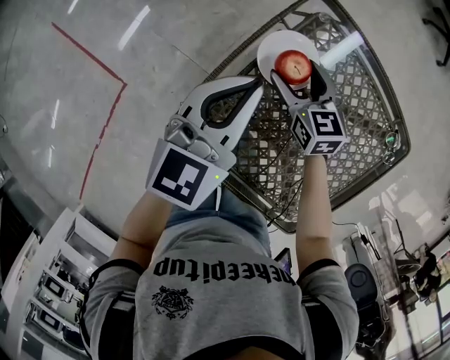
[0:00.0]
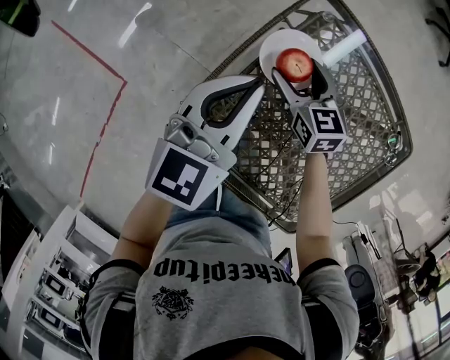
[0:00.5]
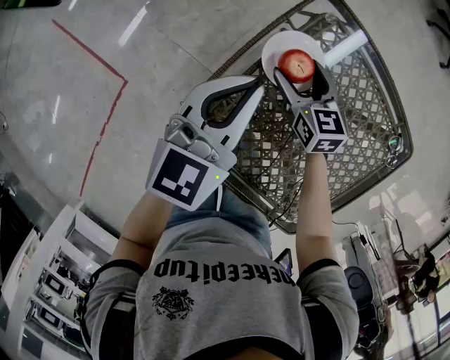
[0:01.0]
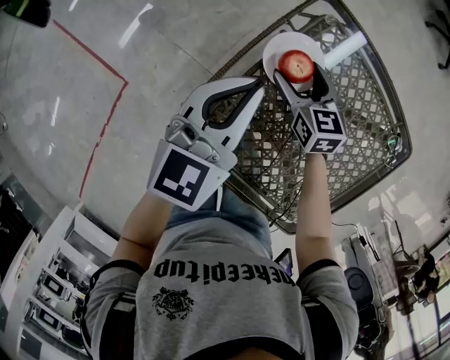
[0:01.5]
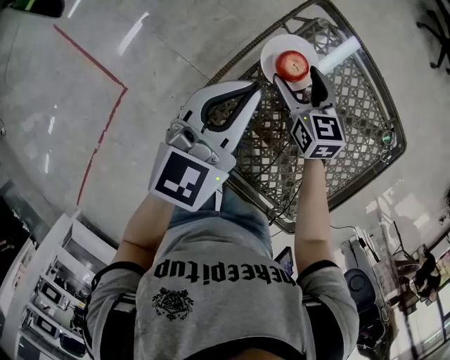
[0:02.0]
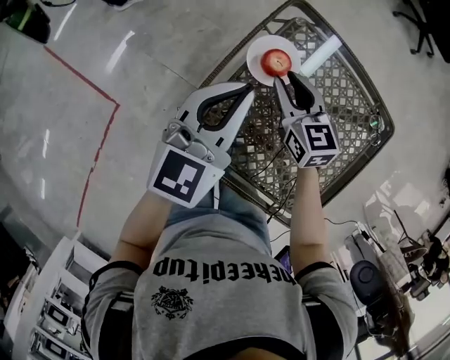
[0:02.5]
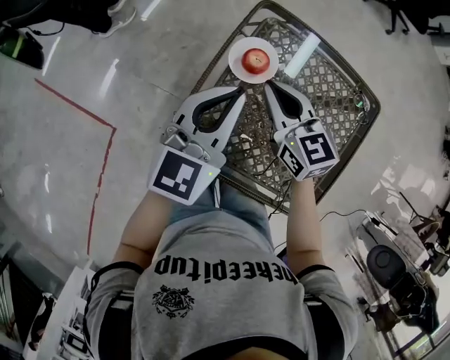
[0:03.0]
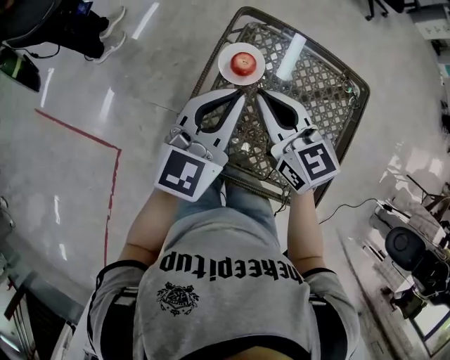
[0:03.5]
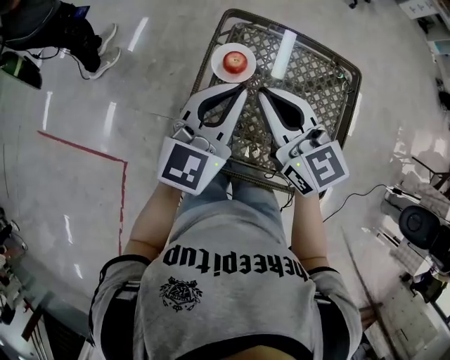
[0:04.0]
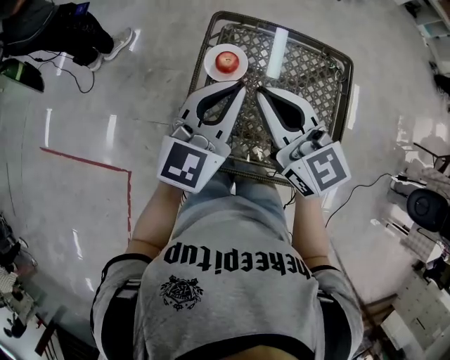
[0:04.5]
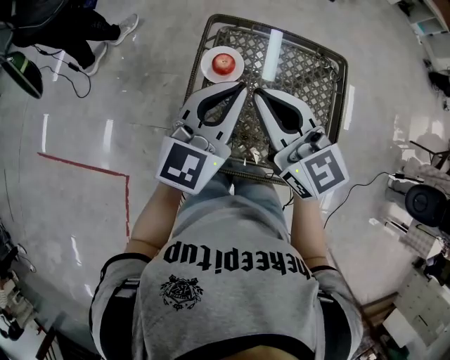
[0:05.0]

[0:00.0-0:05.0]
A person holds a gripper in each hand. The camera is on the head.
0:00.0 to 0:02.5: The right gripper heads upward, covering some 10 cm, and closes up.
0:02.5 to 0:05.0: The left gripper shifts approximately 15 cm upward, backward and to the right, and changes its angle by roughly 30 degrees, while the right gripper moves upward and backward, approximately 30 cm, and changes its angle by roughly 30 degrees.

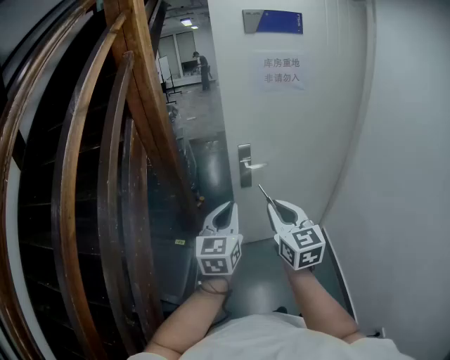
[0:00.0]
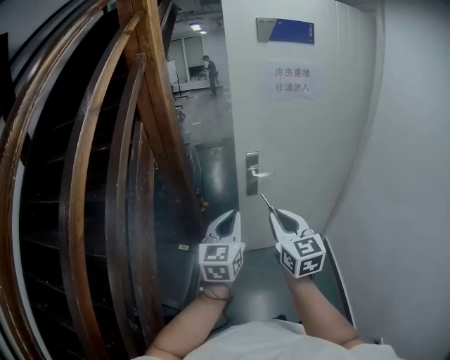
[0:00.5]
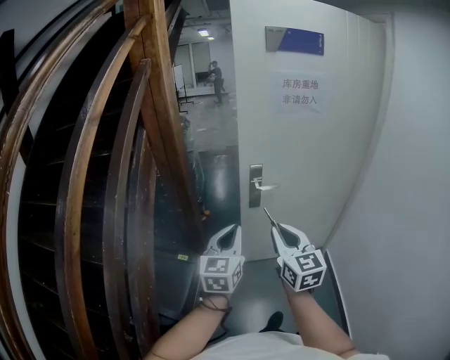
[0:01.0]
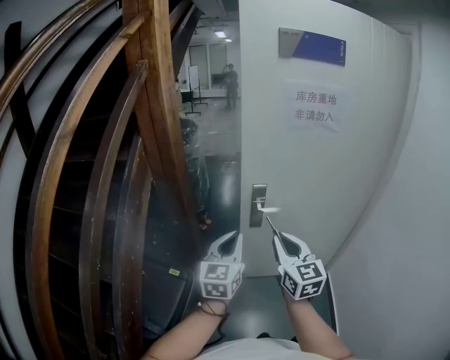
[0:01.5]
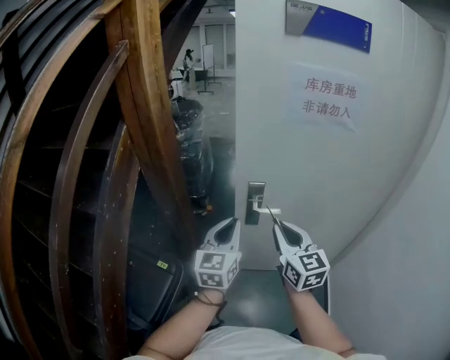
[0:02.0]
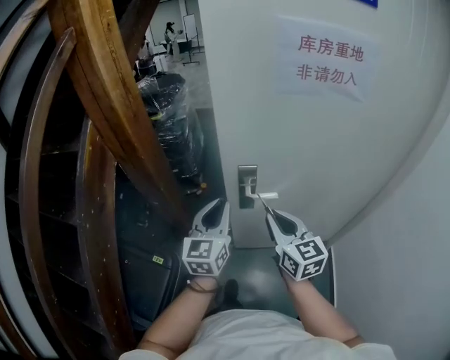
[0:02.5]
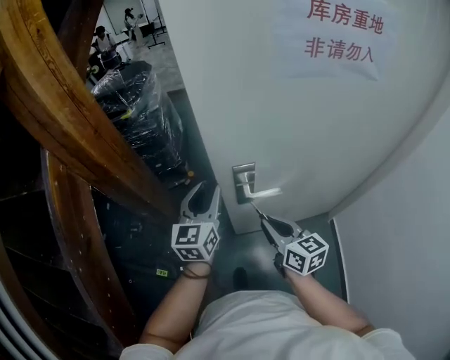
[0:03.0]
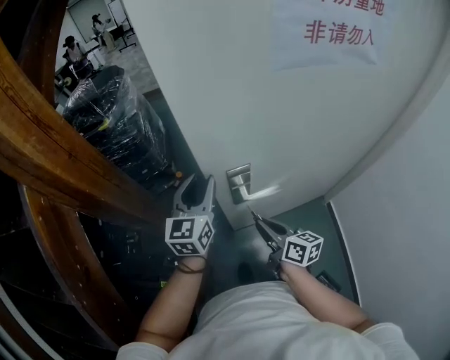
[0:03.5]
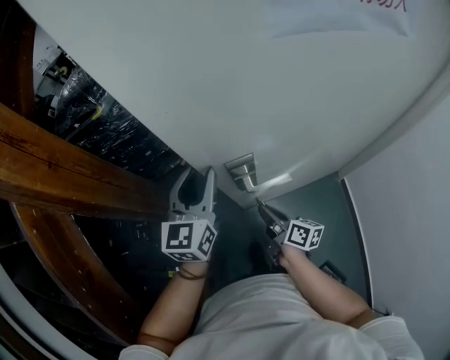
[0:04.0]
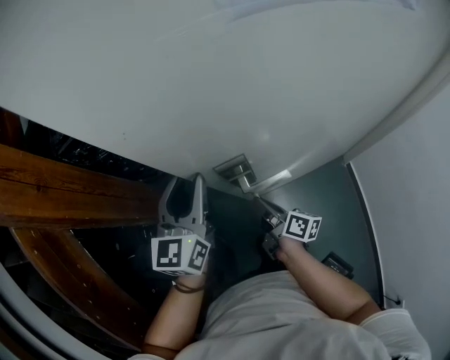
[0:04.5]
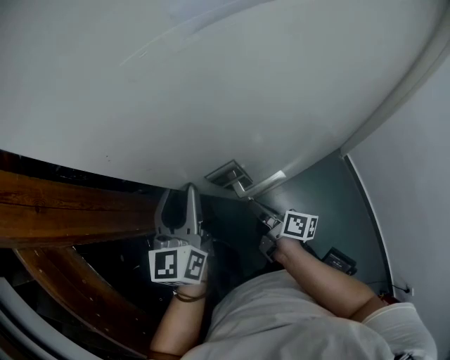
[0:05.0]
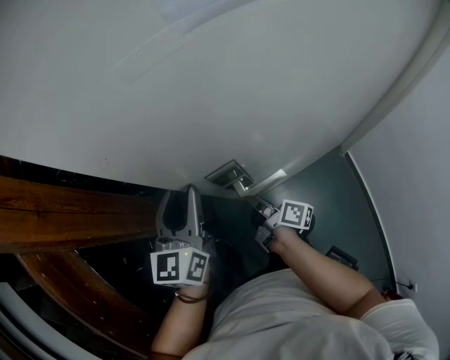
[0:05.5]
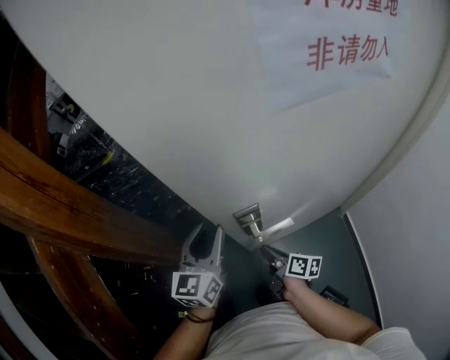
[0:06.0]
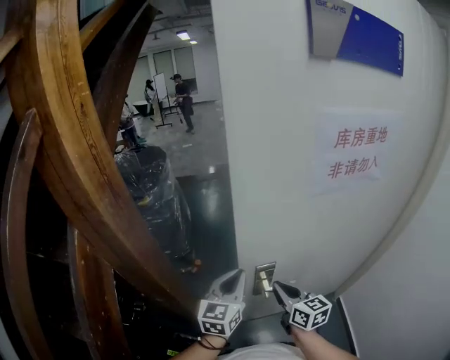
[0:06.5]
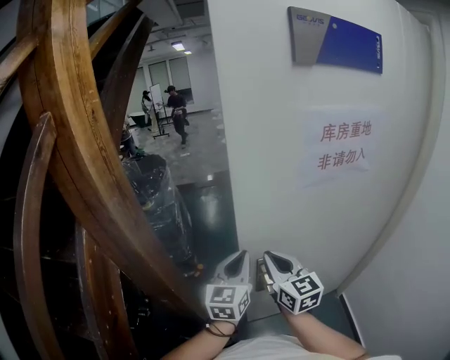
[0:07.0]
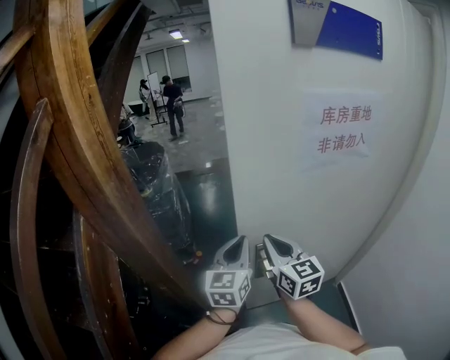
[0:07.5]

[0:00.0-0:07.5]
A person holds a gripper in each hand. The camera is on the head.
0:00.0 to 0:02.0: Both grippers move forward, approximately 25 cm.
0:02.0 to 0:04.0: The right gripper shifts approximately 40 cm downward and forward, and twists approximately 60 degrees clockwise, seen from behind. Meanwhile the left gripper travels forward by some 30 cm, and opens.
0:04.0 to 0:05.5: The right gripper travels forward by about 5 cm, and turns by approximately 20 degrees.
0:05.5 to 0:07.5: The left gripper travels upward by approximately 10 cm, and closes its fingers. Meanwhile the right gripper goes roughly 35 cm upward, and twists about 80 degrees counterclockwise, seen from behind.

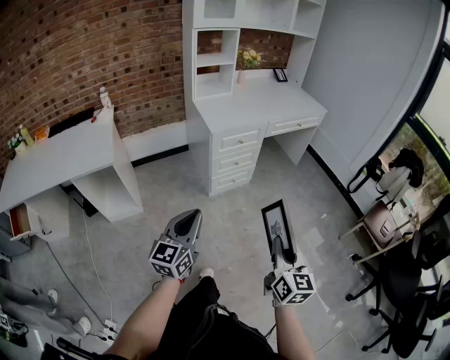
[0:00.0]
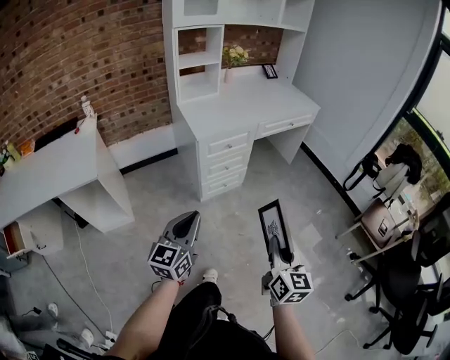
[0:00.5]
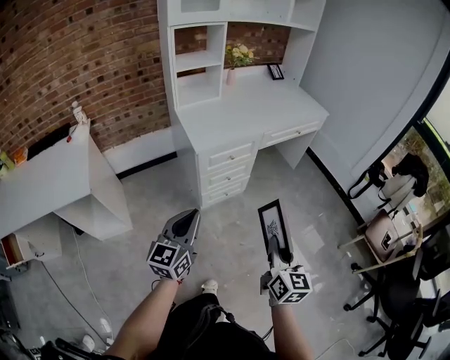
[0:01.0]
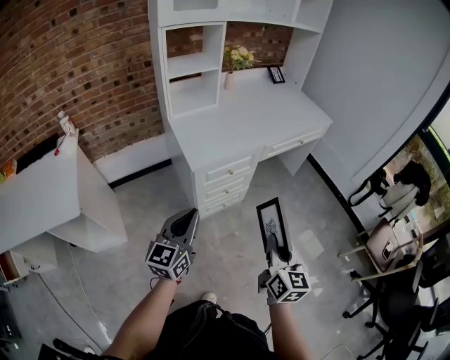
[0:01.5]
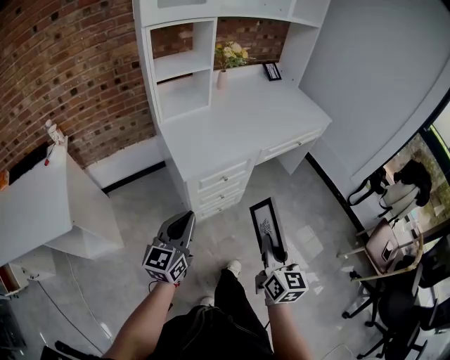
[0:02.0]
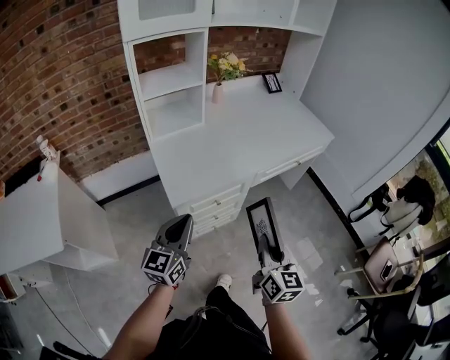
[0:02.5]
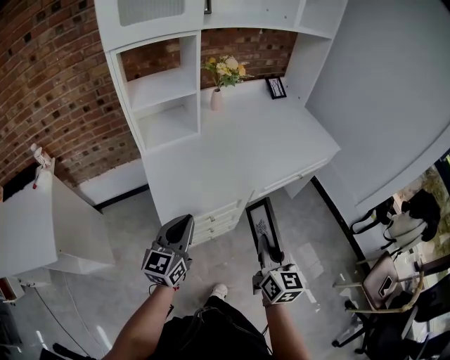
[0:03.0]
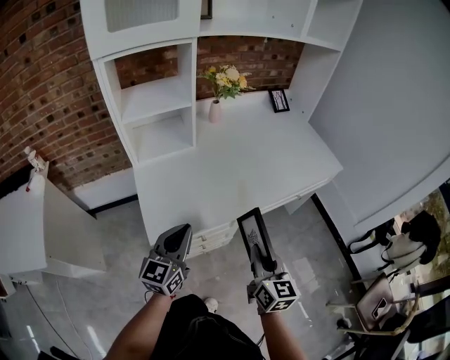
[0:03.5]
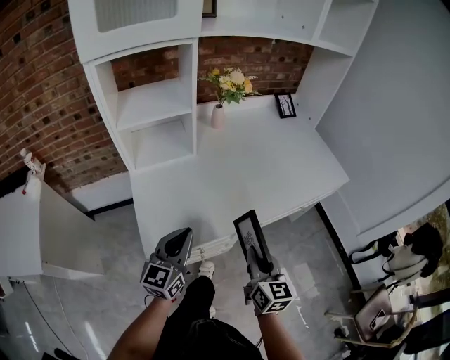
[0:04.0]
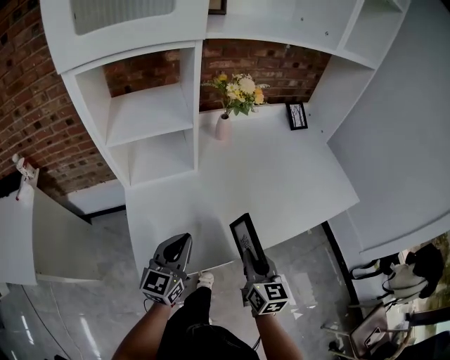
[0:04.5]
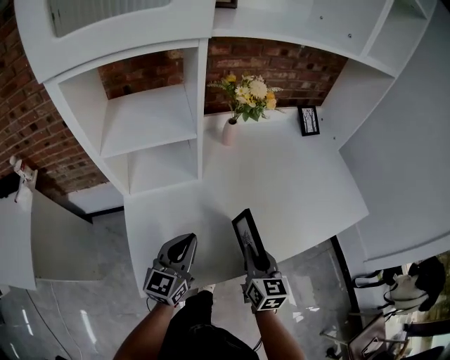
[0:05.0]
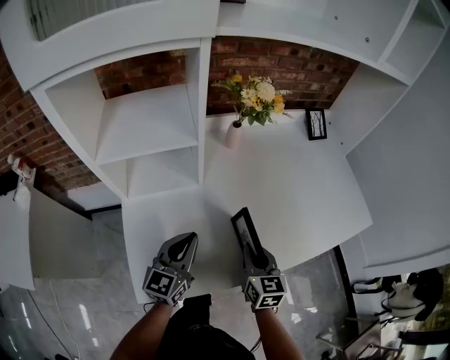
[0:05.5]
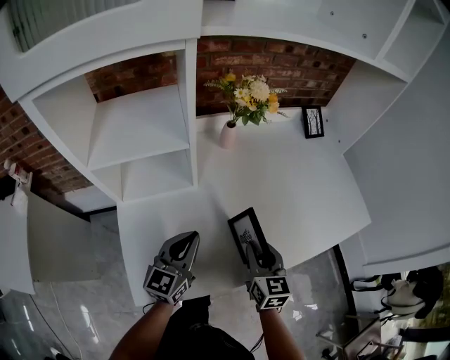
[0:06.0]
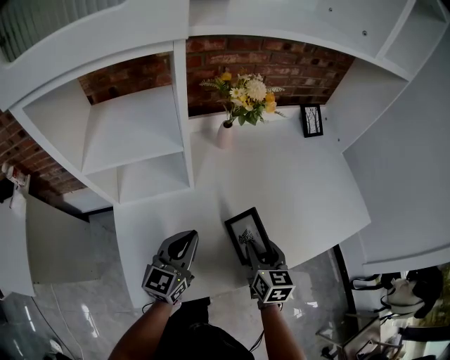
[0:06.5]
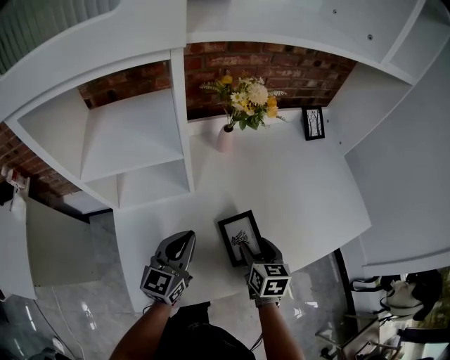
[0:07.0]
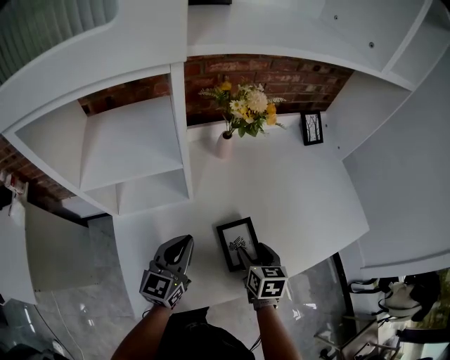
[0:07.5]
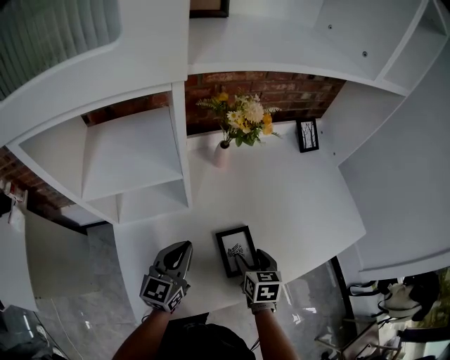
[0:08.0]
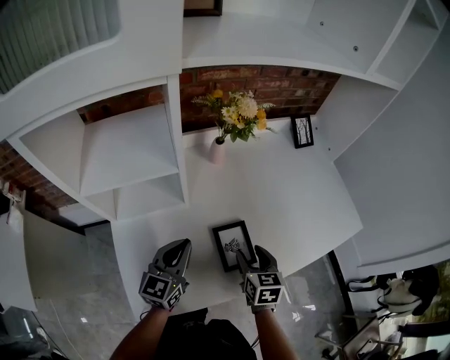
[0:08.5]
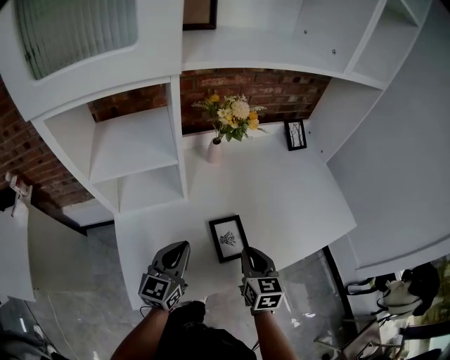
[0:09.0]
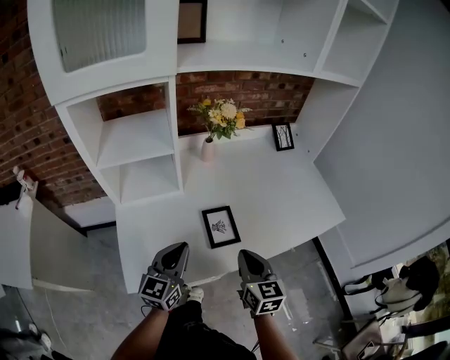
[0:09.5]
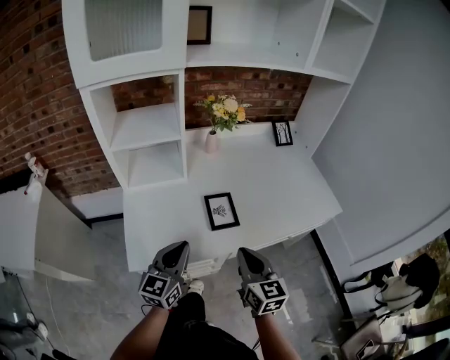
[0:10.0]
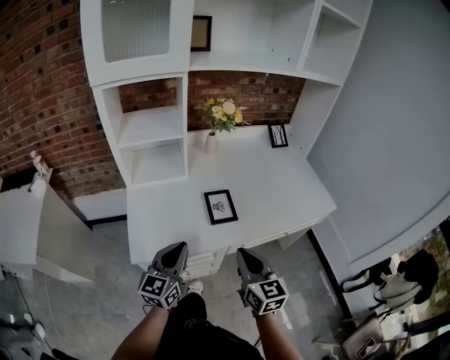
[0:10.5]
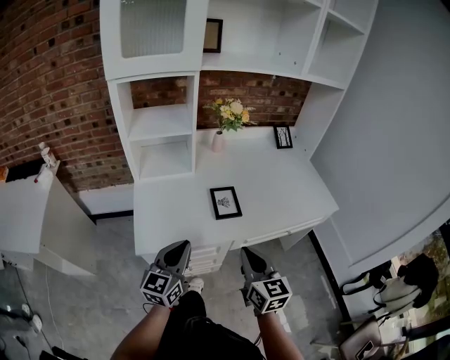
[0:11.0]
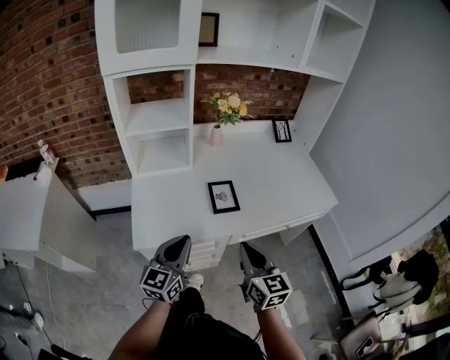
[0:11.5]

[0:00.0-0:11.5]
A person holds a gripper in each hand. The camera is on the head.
0:00.0 to 0:02.0: Both grippers travel together forward, roughly 35 cm.
0:02.0 to 0:04.0: The grippers both shift forward by approximately 30 cm.
0:04.0 to 0:06.0: The grippers both shift forward by approximately 20 cm.
0:06.0 to 0:07.5: The right gripper goes approximately 5 cm downward, swivels about 20 degrees, and opens up.
0:07.5 to 0:09.5: The right gripper travels upward and backward by some 15 cm, rotates roughly 30 degrees, and closes up. The left gripper shifts some 10 cm backward.
0:09.5 to 0:11.5: The left gripper travels backward by roughly 15 cm; the right gripper heads backward and upward, covering about 15 cm.

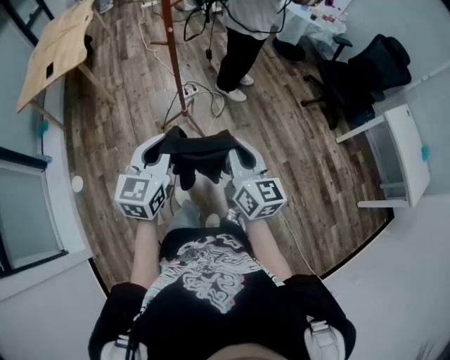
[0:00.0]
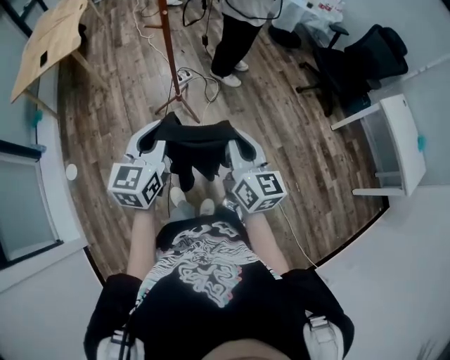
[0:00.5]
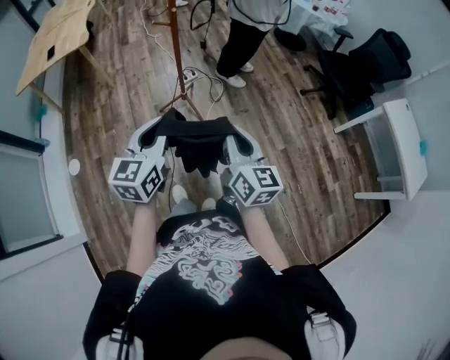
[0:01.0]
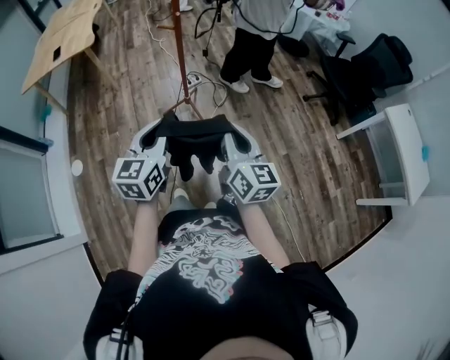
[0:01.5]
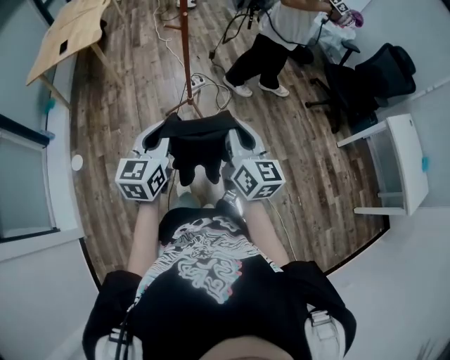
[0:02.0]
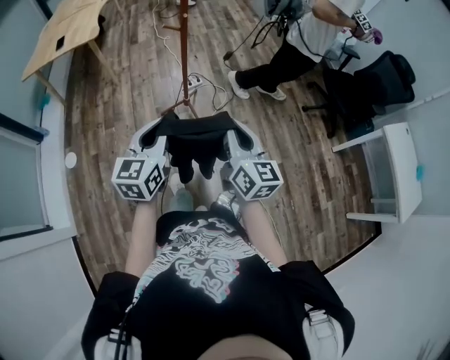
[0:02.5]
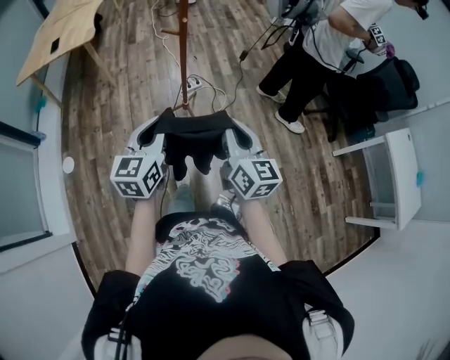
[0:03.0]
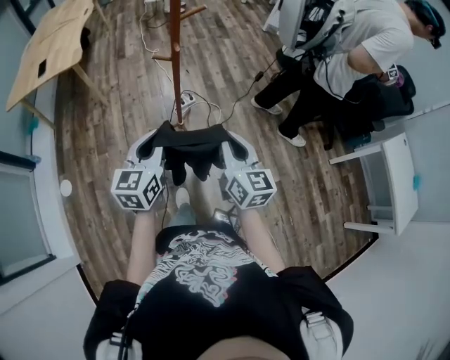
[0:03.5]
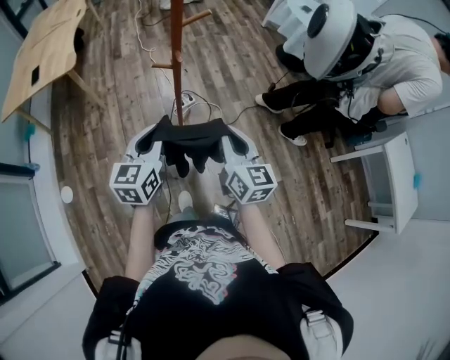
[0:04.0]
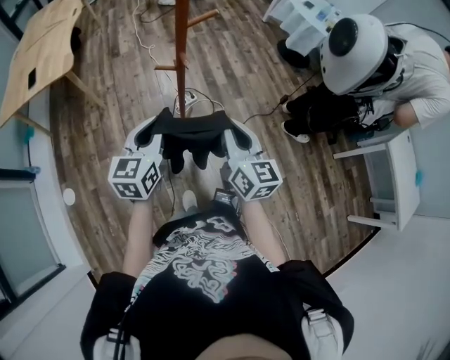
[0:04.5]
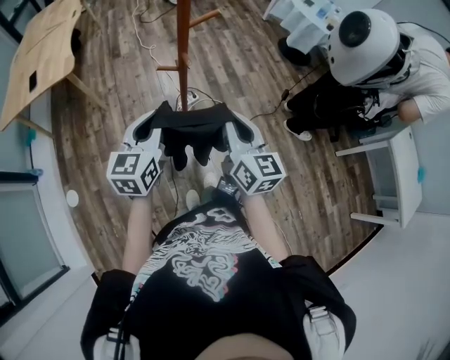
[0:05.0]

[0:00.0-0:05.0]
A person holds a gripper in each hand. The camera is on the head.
0:00.0 to 0:02.5: The grippers stay close to where they were, moving slightly.
0:02.5 to 0:05.0: The grippers both shift forward by approximately 35 cm.
